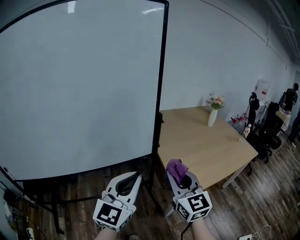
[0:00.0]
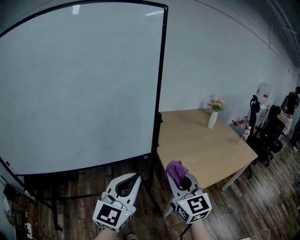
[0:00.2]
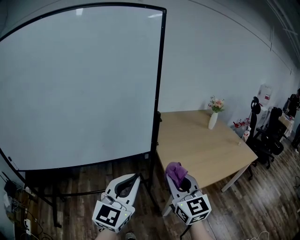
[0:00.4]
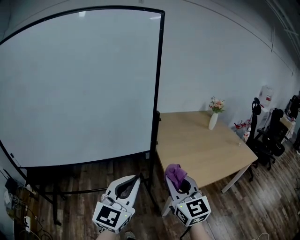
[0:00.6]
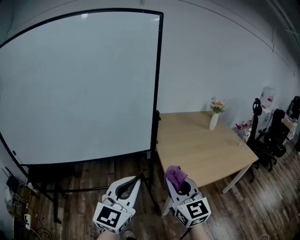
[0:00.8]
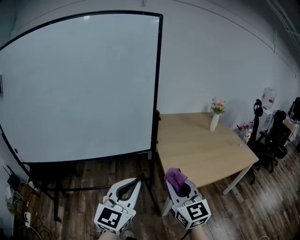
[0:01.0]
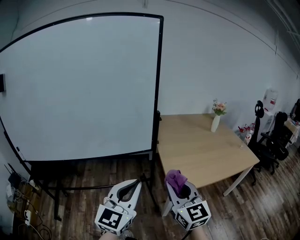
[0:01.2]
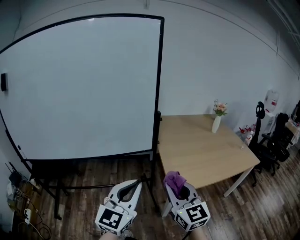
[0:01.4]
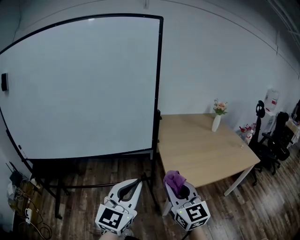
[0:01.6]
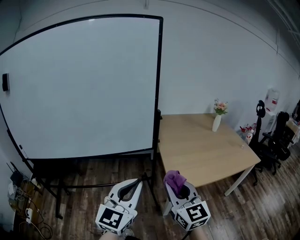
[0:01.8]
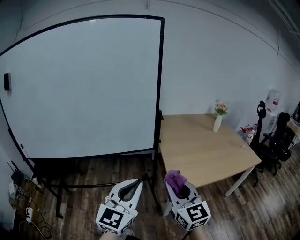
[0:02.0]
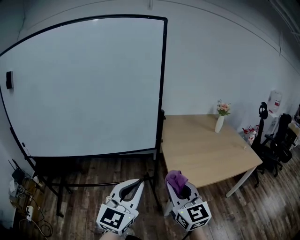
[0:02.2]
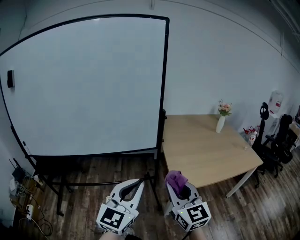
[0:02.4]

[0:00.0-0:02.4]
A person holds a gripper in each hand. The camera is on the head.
0:00.0 to 0:01.2: The grippers both shift backward and to the right by some 15 cm.
0:01.2 to 0:02.4: The grippers move only a little.

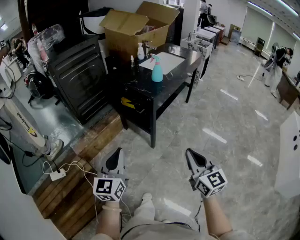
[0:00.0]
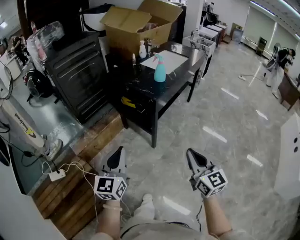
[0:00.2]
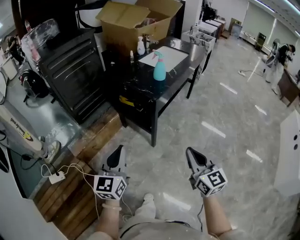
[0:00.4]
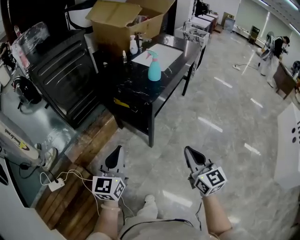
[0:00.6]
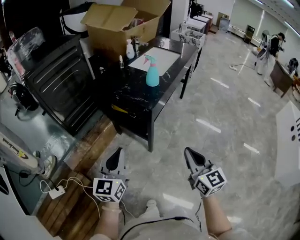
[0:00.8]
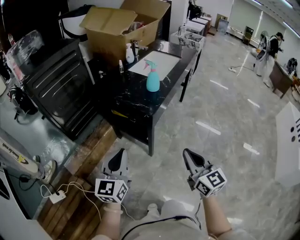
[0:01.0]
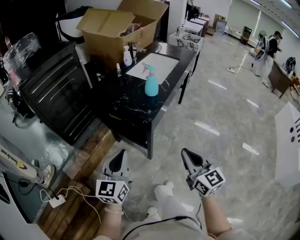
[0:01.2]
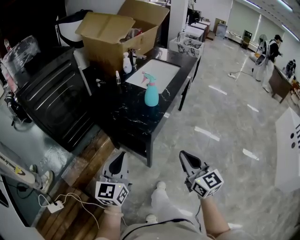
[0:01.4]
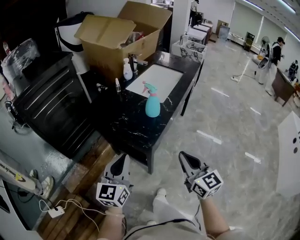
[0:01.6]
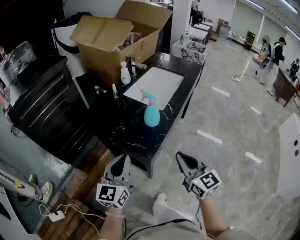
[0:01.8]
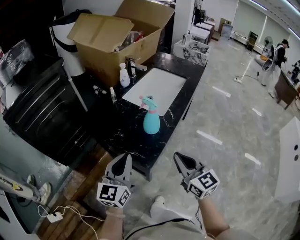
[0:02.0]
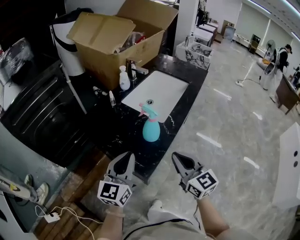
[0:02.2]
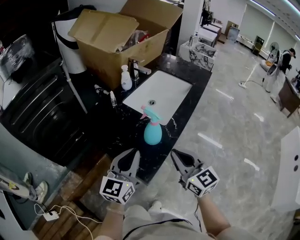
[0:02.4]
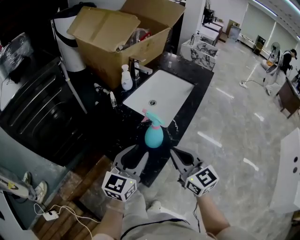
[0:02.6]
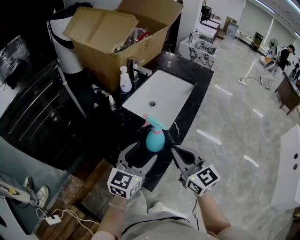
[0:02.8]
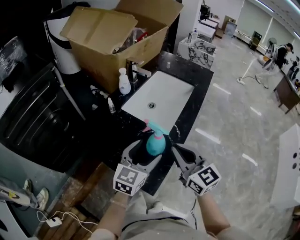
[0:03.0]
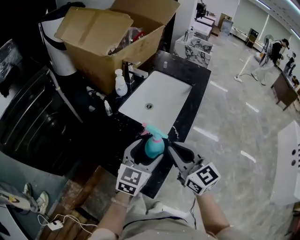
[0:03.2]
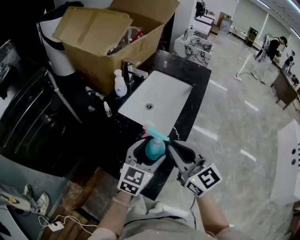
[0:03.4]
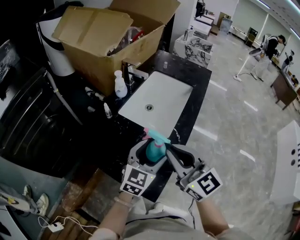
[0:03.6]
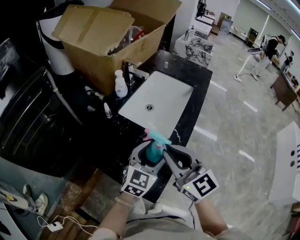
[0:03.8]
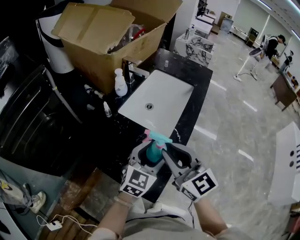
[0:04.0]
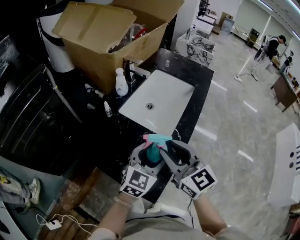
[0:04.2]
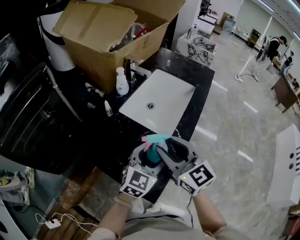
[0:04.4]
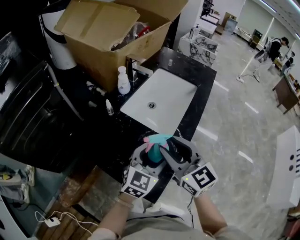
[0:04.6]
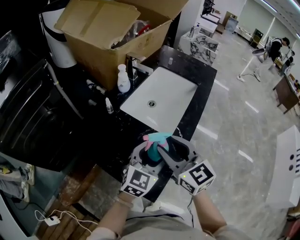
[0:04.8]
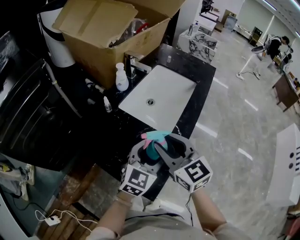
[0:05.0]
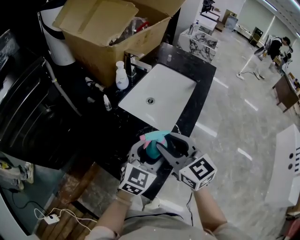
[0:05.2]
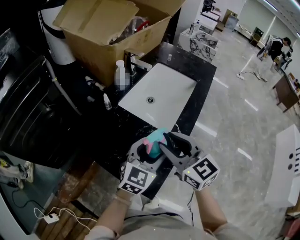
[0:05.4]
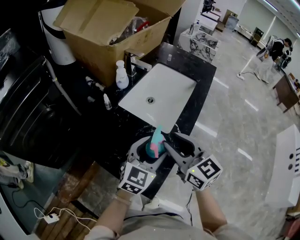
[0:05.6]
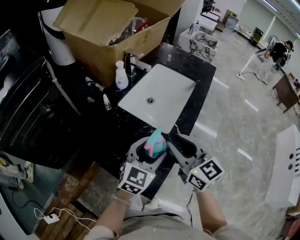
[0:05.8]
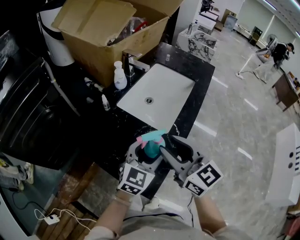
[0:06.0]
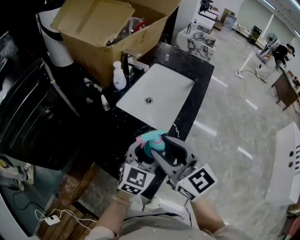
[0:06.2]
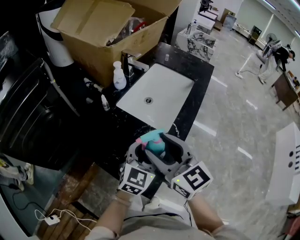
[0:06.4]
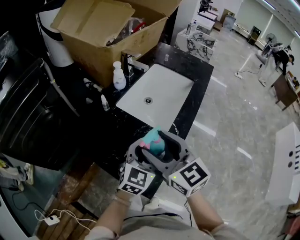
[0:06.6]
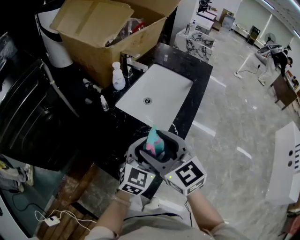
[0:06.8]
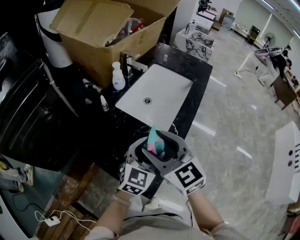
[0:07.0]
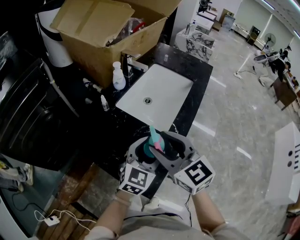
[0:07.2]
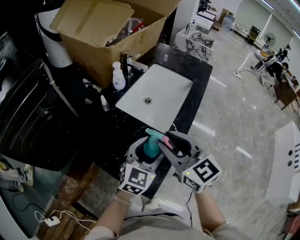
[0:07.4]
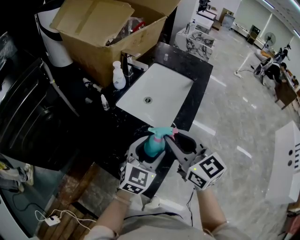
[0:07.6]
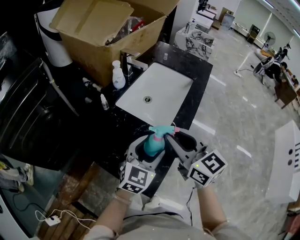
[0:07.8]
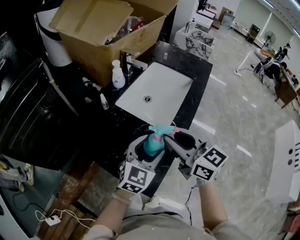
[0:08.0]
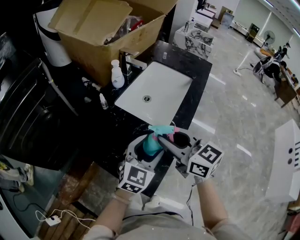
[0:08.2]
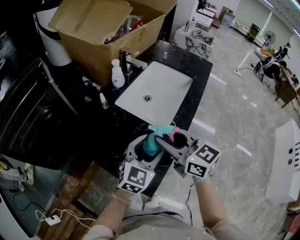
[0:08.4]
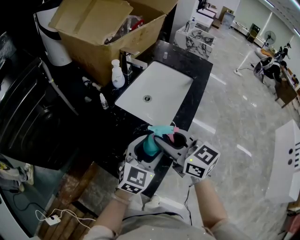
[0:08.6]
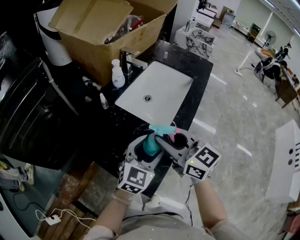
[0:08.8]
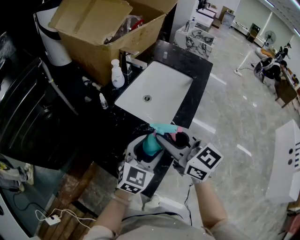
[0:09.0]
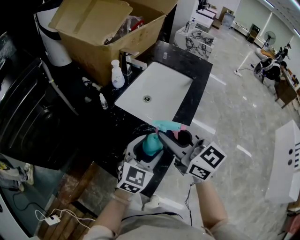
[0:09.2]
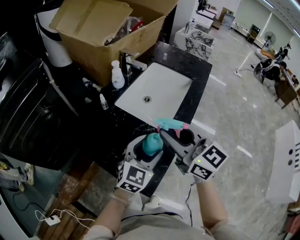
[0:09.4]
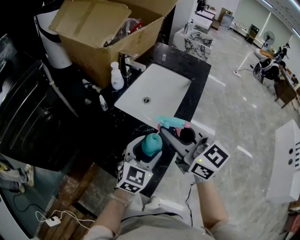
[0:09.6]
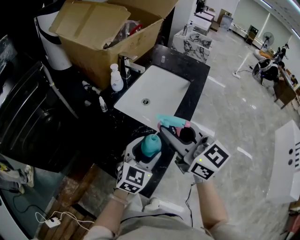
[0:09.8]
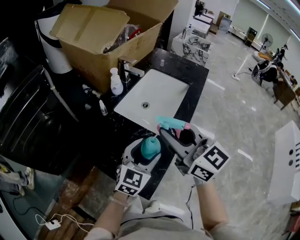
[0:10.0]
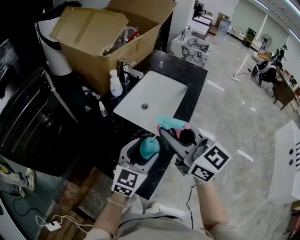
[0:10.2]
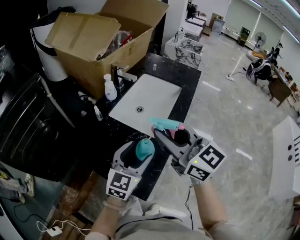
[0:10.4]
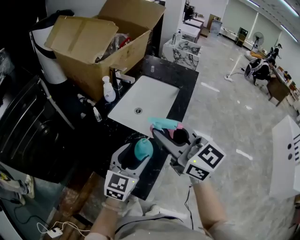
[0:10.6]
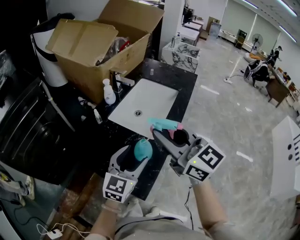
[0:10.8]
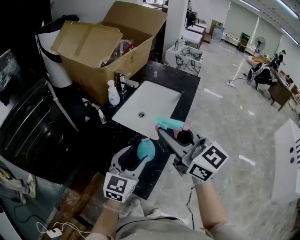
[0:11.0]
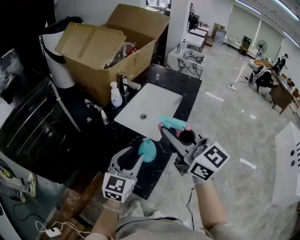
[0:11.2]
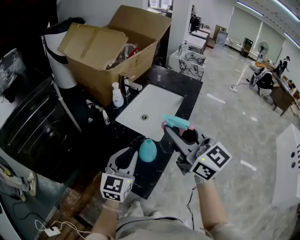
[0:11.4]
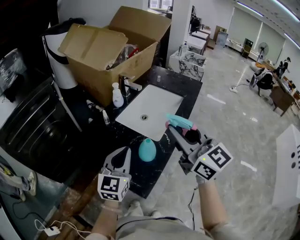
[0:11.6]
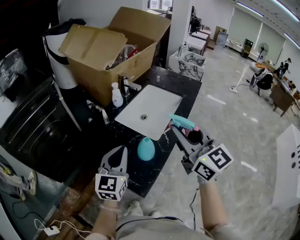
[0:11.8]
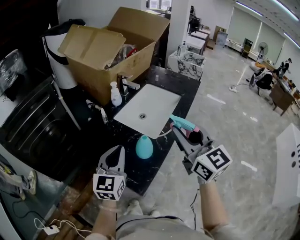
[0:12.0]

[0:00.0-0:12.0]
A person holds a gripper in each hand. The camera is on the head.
0:00.0 to 0:01.6: The grippers both shift forward by about 30 cm.
0:01.6 to 0:03.0: The right gripper heads forward, covering some 25 cm. Meanwhile the left gripper heads forward and to the right, covering approximately 30 cm, rotates about 20 degrees, and opens its fingers.
0:03.0 to 0:04.4: The right gripper travels to the left by some 5 cm, and opens its fingers.
0:04.4 to 0:06.0: The grippers stay close to where they were, moving slightly.
0:06.0 to 0:07.6: The right gripper opens, then closes once more.
0:07.6 to 0:09.0: There are only small adjustments of the grippers.
0:09.0 to 0:10.4: The right gripper goes approximately 10 cm upward.
0:10.4 to 0:12.0: The right gripper shifts some 5 cm to the right; the left gripper shifts roughly 10 cm to the left, rotates some 20 degrees, and closes its fingers.

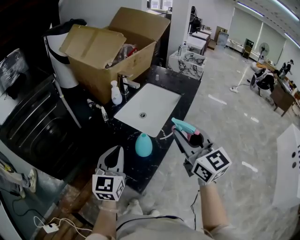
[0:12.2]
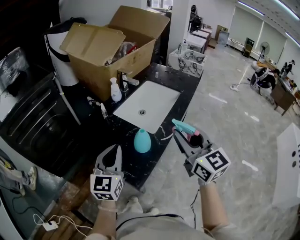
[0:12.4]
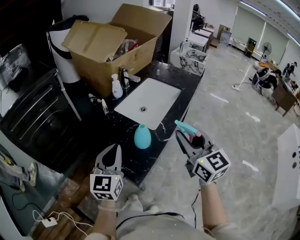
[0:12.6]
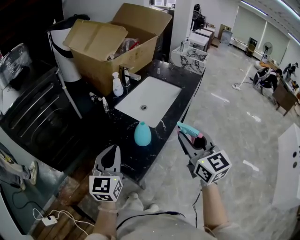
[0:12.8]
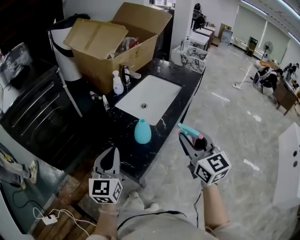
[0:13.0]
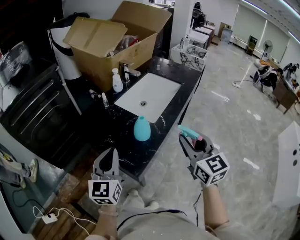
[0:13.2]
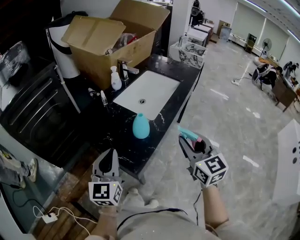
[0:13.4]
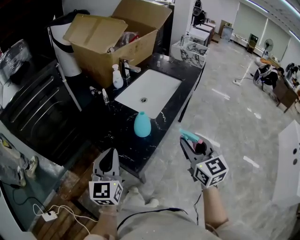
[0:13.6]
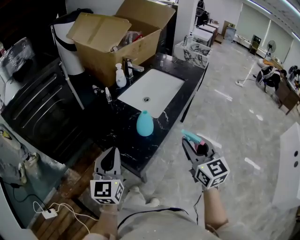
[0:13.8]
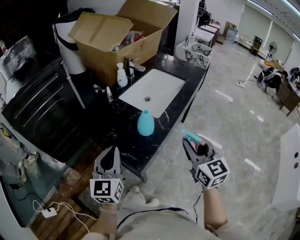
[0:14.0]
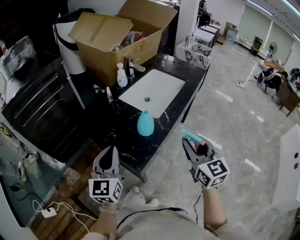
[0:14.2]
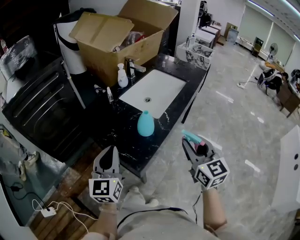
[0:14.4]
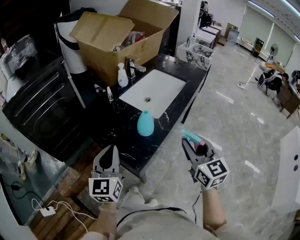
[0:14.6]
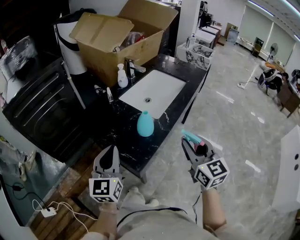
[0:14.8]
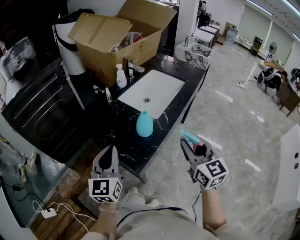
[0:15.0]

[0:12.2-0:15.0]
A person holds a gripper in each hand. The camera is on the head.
0:12.2 to 0:13.6: The left gripper moves backward, roughly 10 cm. Meanwhile the right gripper shifts about 15 cm downward and backward.
0:13.6 to 0:15.0: The two grippers keep their place.

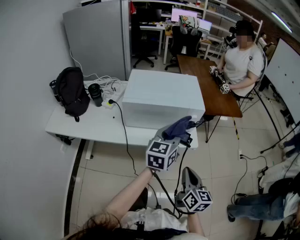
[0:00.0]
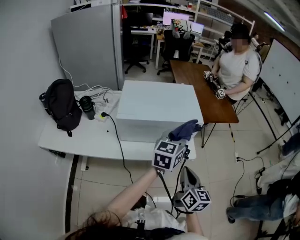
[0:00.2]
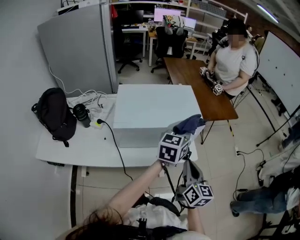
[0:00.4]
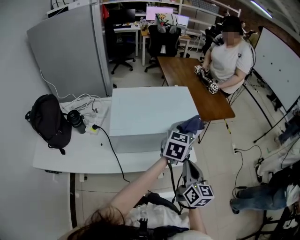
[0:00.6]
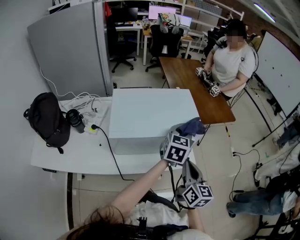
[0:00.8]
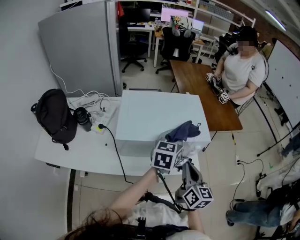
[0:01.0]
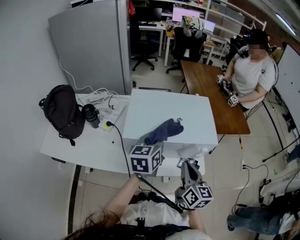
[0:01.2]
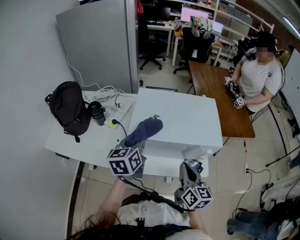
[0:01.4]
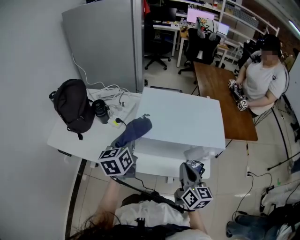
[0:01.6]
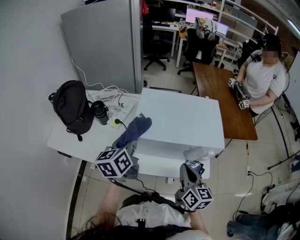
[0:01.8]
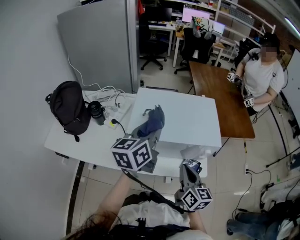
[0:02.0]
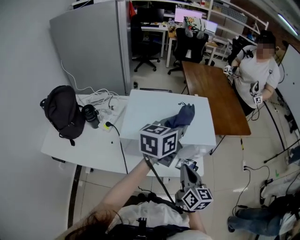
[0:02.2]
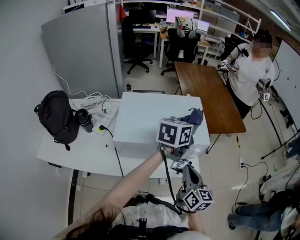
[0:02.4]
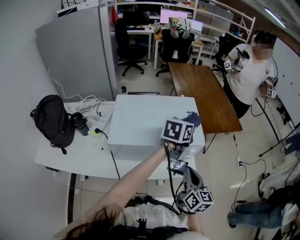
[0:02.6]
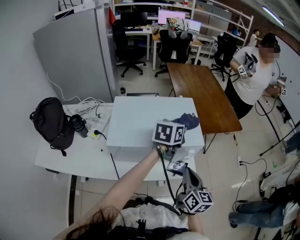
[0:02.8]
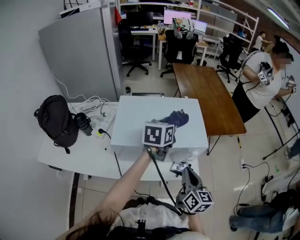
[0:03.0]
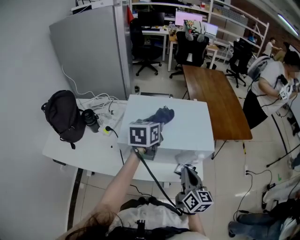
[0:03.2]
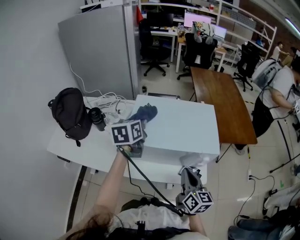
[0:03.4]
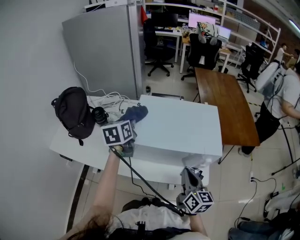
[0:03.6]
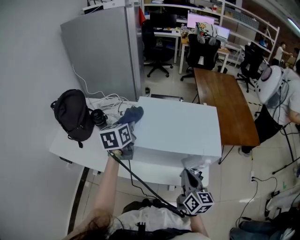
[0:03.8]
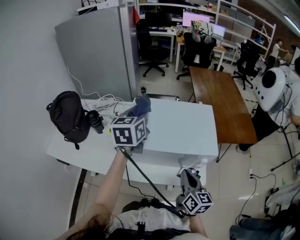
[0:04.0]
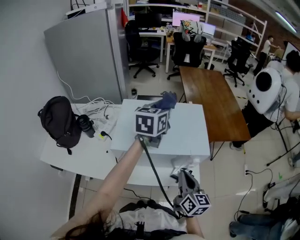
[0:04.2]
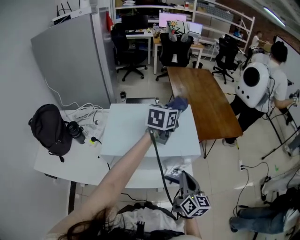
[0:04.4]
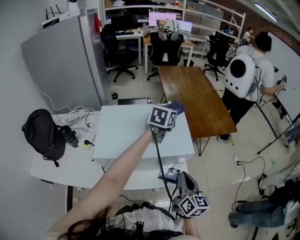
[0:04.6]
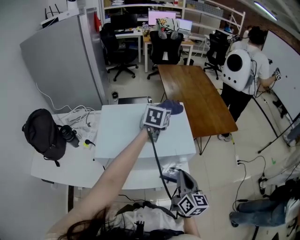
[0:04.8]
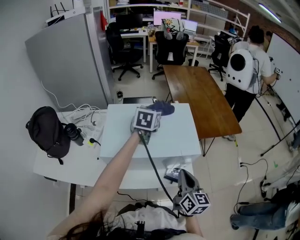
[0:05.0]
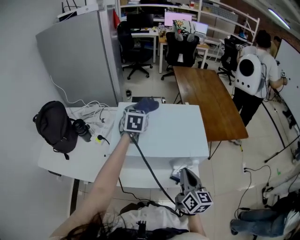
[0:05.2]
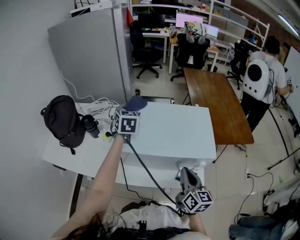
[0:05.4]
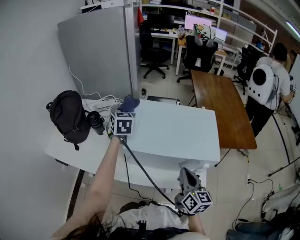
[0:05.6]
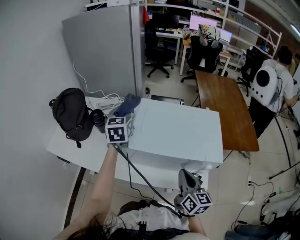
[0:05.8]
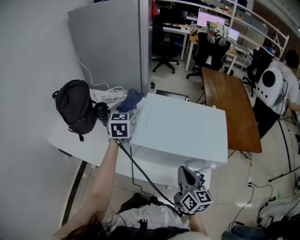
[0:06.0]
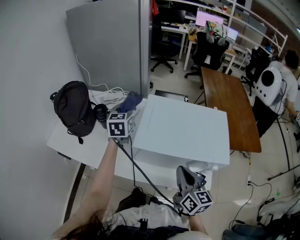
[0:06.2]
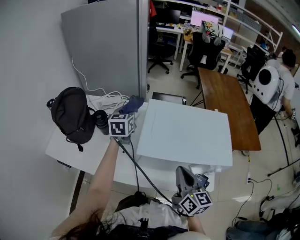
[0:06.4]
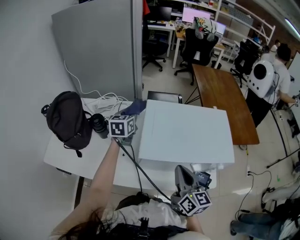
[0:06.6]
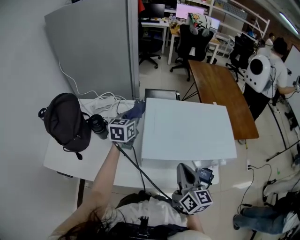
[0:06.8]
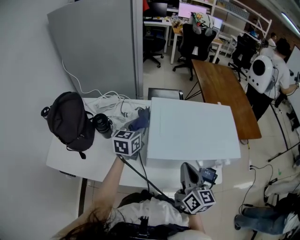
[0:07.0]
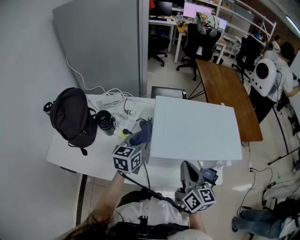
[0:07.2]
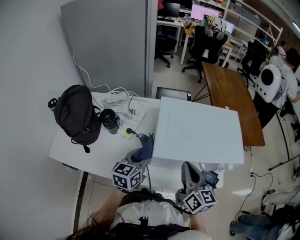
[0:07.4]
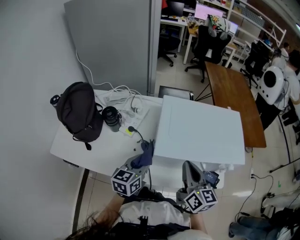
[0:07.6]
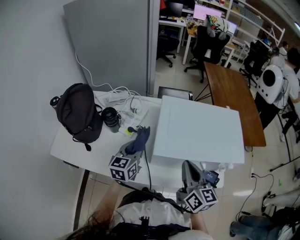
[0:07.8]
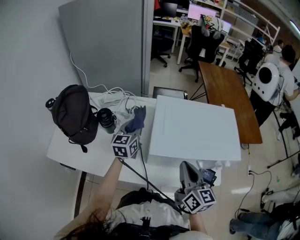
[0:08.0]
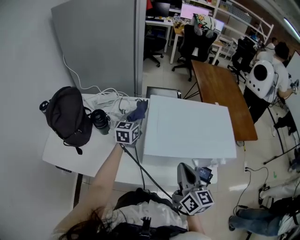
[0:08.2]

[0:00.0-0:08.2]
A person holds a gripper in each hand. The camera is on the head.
0:00.0 to 0:01.6: The right gripper ends up some 25 cm from where it was; the left gripper moves about 30 cm, and swivels approximately 30 degrees.
0:01.6 to 0:03.2: The left gripper turns by some 20 degrees.
0:03.2 to 0:05.0: The left gripper travels upward and back again, about 5 cm each way.
0:05.0 to 0:06.6: The left gripper is displaced to the left by roughly 30 cm. Meanwhile the right gripper is displaced to the left by approximately 20 cm.
0:06.6 to 0:08.2: The left gripper reaches about 25 cm backward, then returns.
